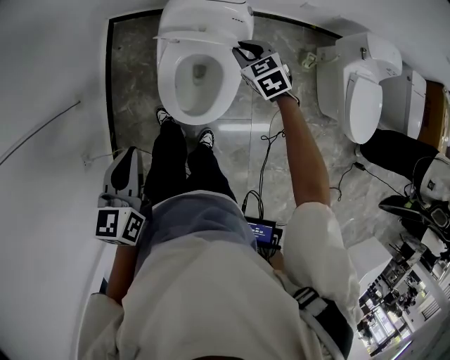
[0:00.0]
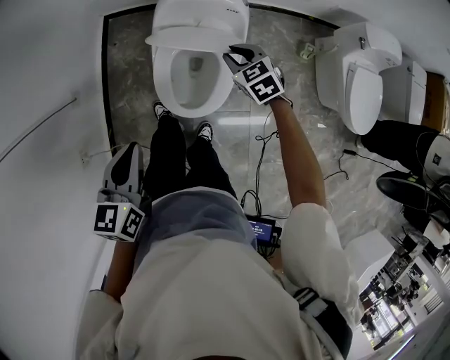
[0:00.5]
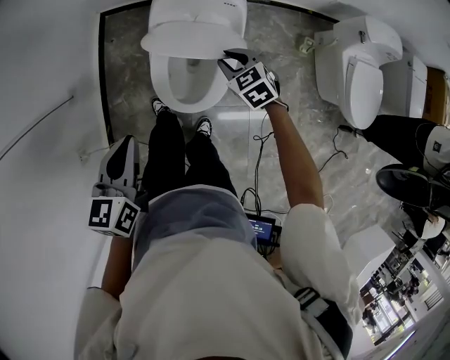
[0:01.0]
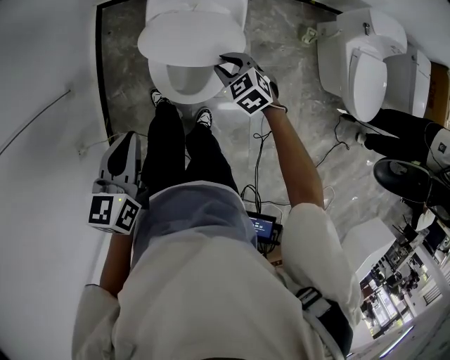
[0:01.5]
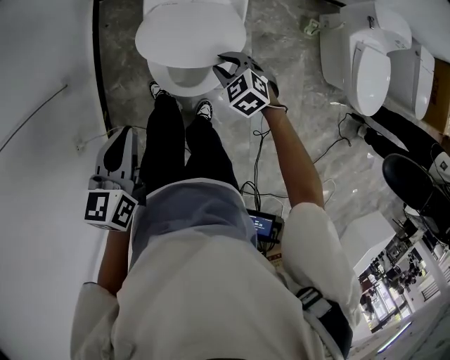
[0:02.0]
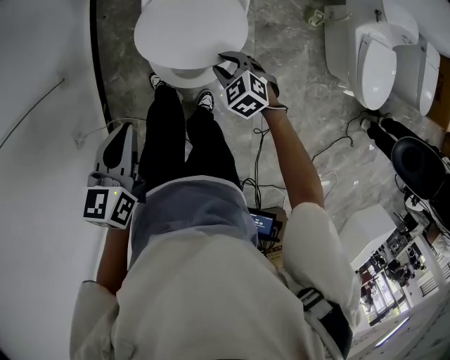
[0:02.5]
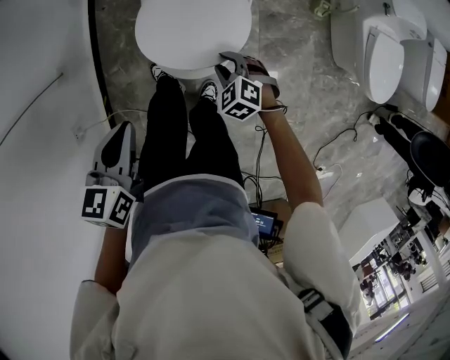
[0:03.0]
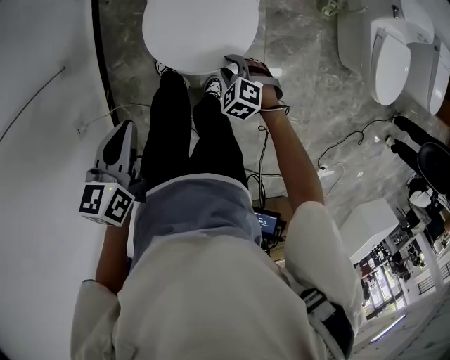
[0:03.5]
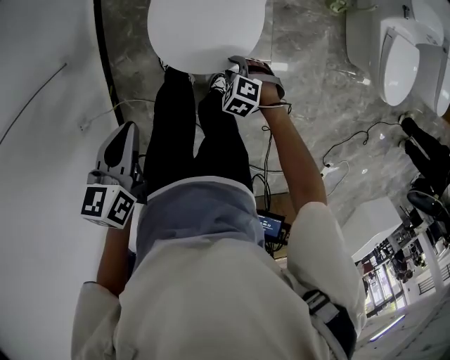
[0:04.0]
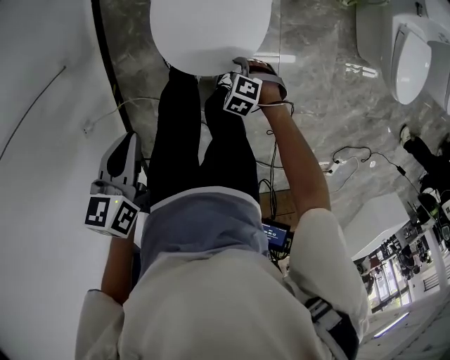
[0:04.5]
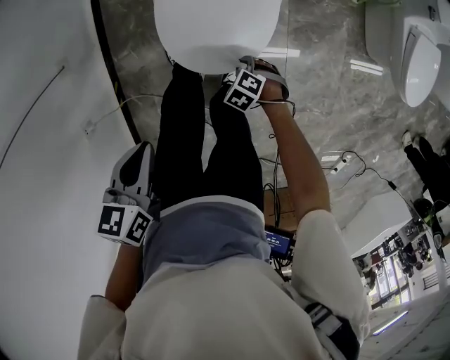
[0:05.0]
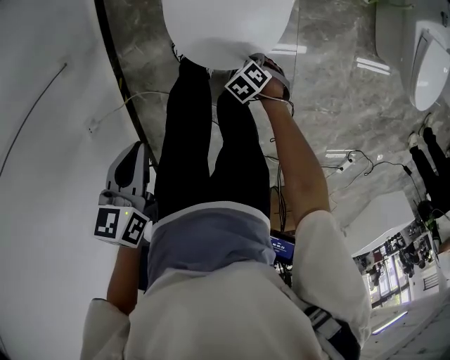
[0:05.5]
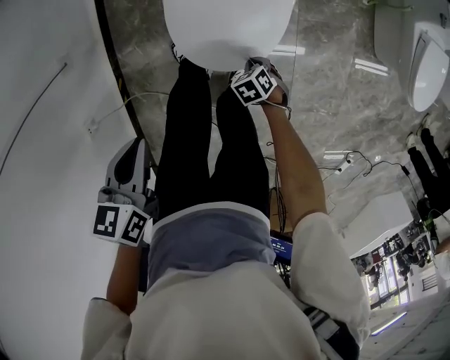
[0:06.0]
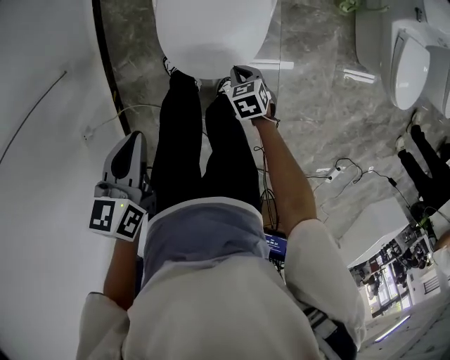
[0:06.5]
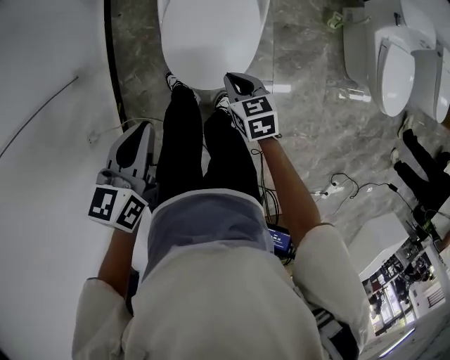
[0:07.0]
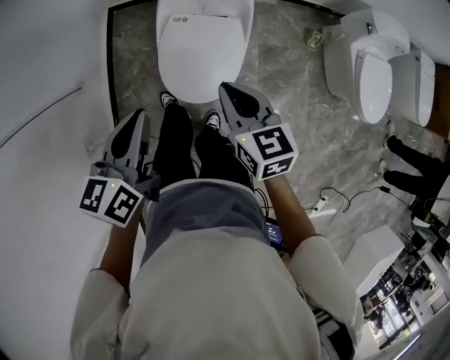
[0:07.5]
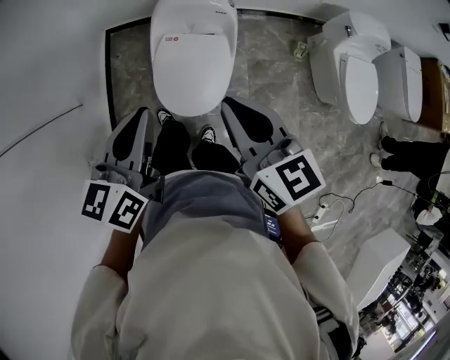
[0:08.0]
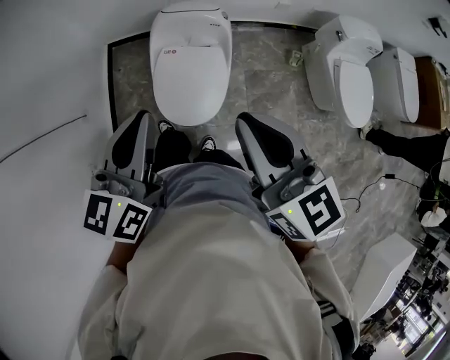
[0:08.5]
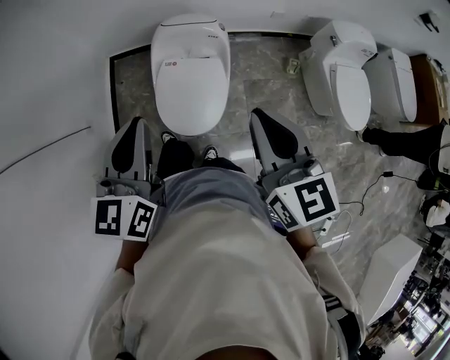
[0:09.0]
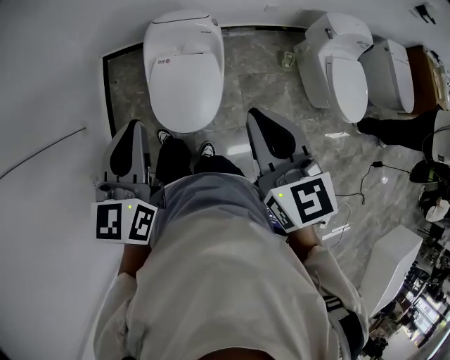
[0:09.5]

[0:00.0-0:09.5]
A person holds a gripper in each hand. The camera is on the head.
0:00.0 to 0:02.0: The right gripper is displaced backward and downward by roughly 15 cm.
0:02.0 to 0:04.0: The right gripper heads downward and backward, covering about 15 cm, and swivels approximately 20 degrees. Meanwhile the left gripper goes approximately 5 cm downward.
0:04.0 to 0:05.5: The right gripper travels downward by about 15 cm, and turns by approximately 30 degrees. Meanwhile the left gripper goes about 5 cm downward.
0:05.5 to 0:07.5: The left gripper moves upward, approximately 20 cm, and rotates roughly 30 degrees. Meanwhile the right gripper shifts approximately 50 cm upward, and angles its fingers upward, by some 60 degrees.
0:07.5 to 0:09.5: The left gripper shifts about 15 cm upward, and turns by approximately 20 degrees. Meanwhile the right gripper heads upward and to the right, covering some 25 cm.

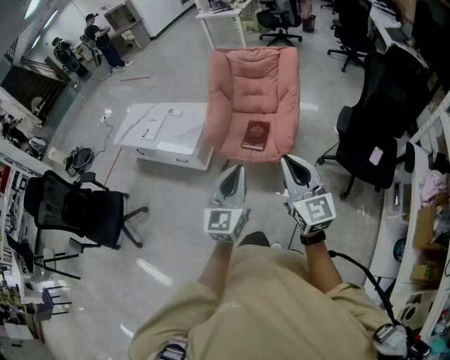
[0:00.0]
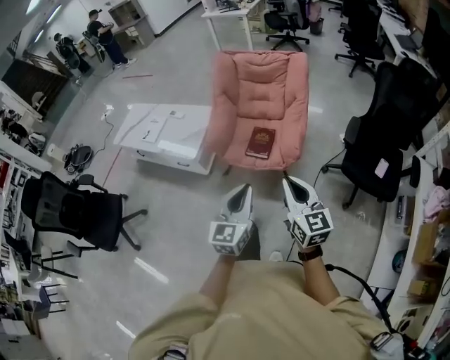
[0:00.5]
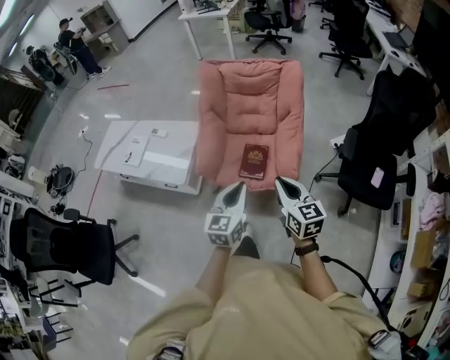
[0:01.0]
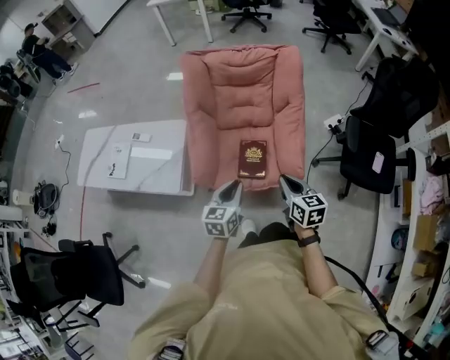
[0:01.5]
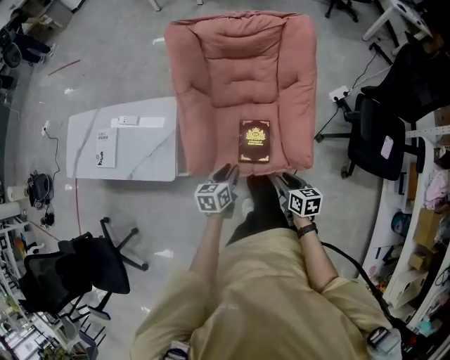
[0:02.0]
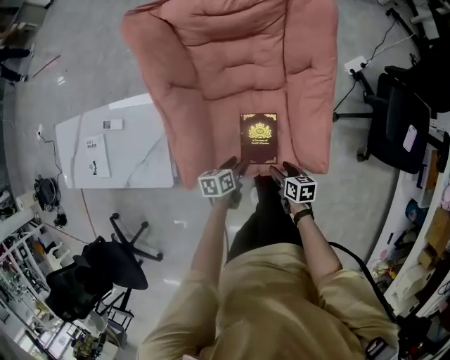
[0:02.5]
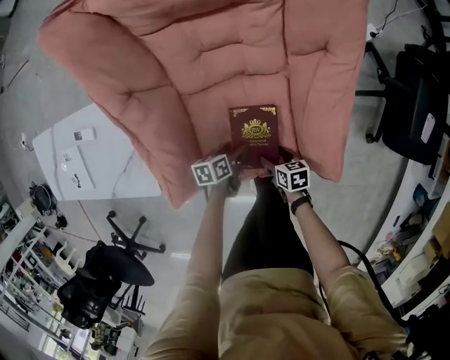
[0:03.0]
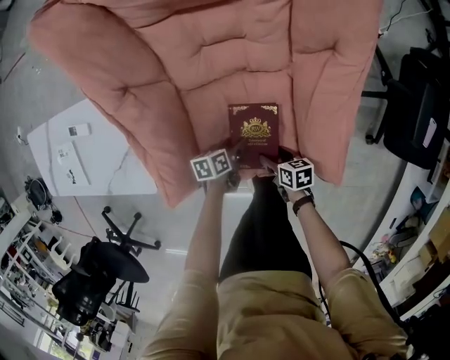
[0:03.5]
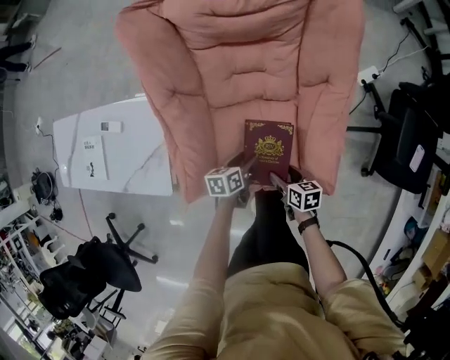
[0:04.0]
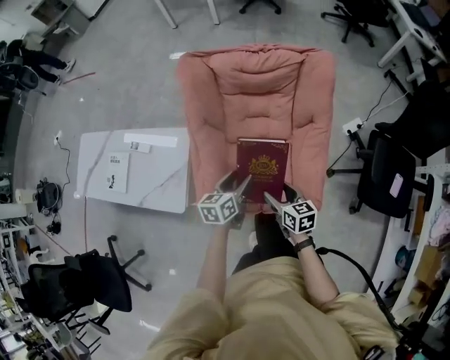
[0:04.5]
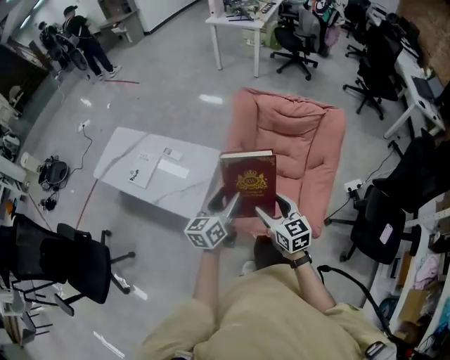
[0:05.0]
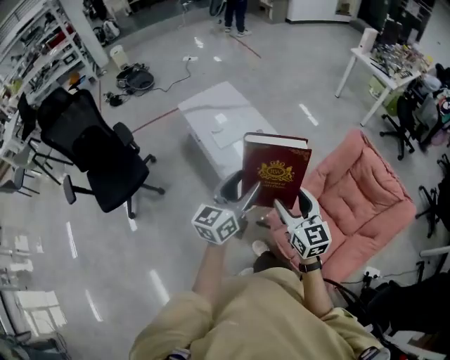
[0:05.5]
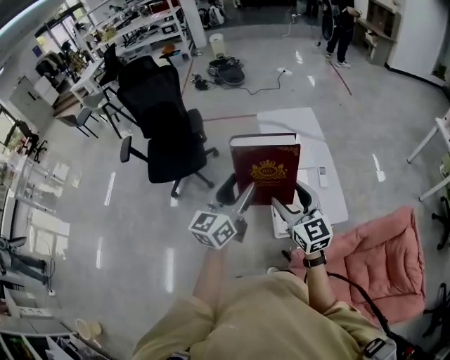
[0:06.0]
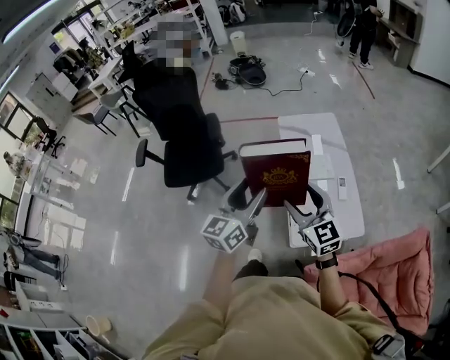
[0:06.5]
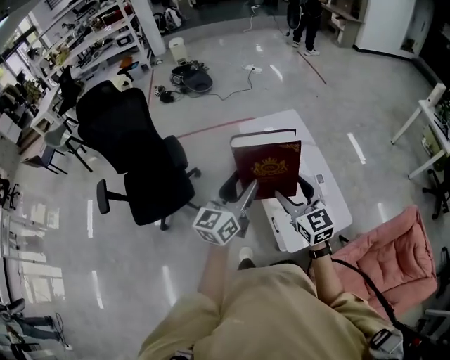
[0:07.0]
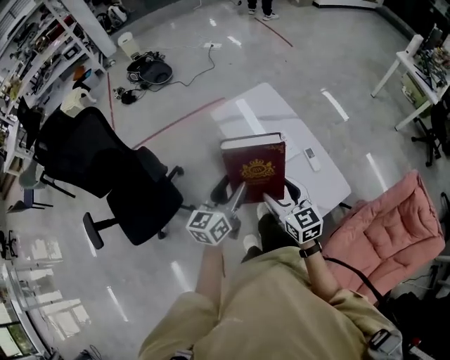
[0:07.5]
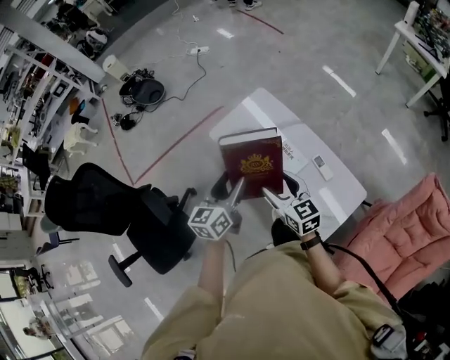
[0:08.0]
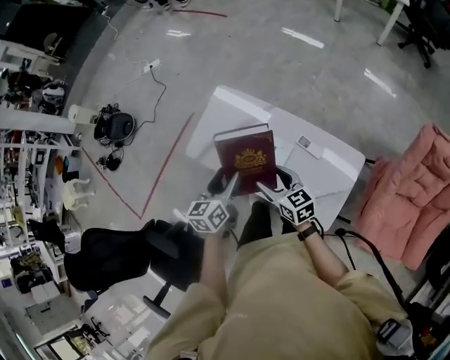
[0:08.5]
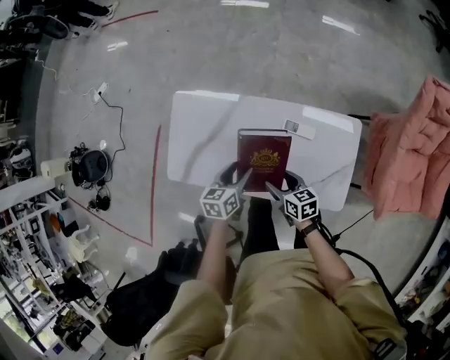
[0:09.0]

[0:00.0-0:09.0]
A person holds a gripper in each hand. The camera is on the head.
0:00.0 to 0:02.0: The pair of grippers is taken forward, about 50 cm. Both grippers travel together downward, about 40 cm. The right gripper angles its fingers downward, by roughly 50 degrees, and opens; the left gripper tips its fingers downward by roughly 40 degrees.
0:02.0 to 0:04.5: The right gripper travels forward and to the left by about 15 cm, reaches roughly 35 cm downward, then returns, and opens up; the left gripper moves forward, some 15 cm, reaches some 35 cm downward, then returns, and opens.
0:04.5 to 0:07.0: Both grippers are carried some 80 cm. The right gripper changes its angle by approximately 80 degrees. Meanwhile the left gripper points its fingers roughly 30 degrees further upward.
0:07.0 to 0:09.0: The two grippers travel together, about 50 cm. The right gripper twists some 70 degrees clockwise, seen from behind. The left gripper tips its fingers downward by roughly 50 degrees.

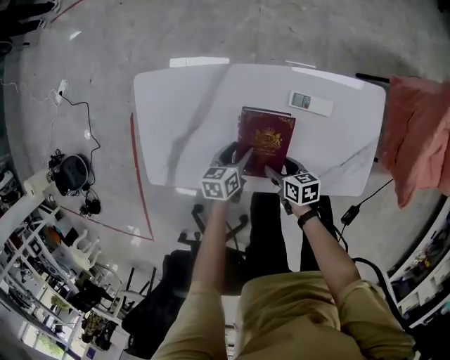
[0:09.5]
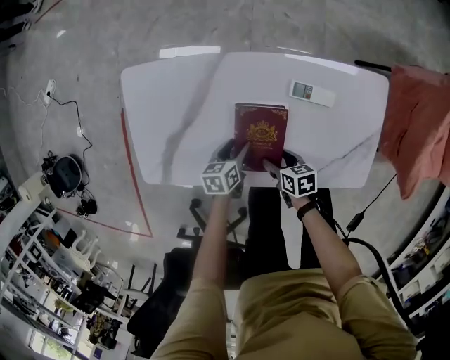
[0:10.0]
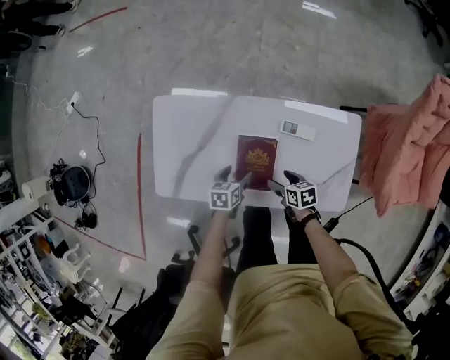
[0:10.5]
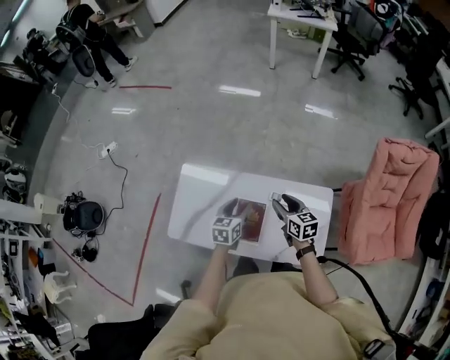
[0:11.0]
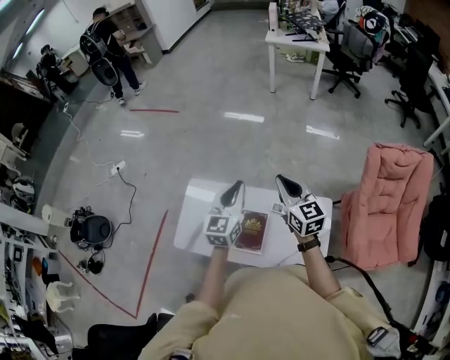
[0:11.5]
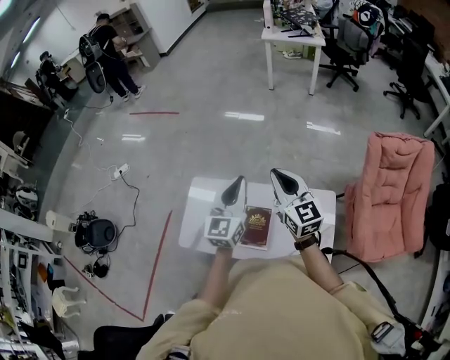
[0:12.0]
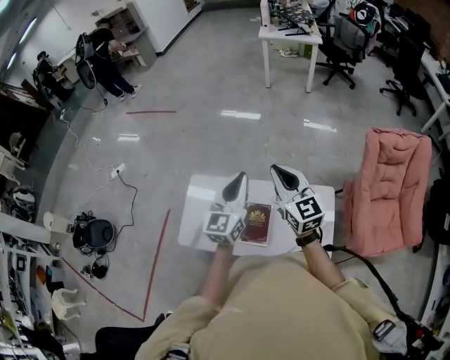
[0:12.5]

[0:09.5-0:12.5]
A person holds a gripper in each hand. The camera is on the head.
0:09.5 to 0:11.0: The two grippers go about 40 cm upward. The left gripper turns by some 30 degrees. The right gripper turns by some 40 degrees.
0:11.0 to 0:12.5: The grippers both shift upward by some 25 cm. The right gripper turns by roughly 40 degrees, and closes its fingers. The left gripper tilts its fingers roughly 30 degrees upward, and closes.

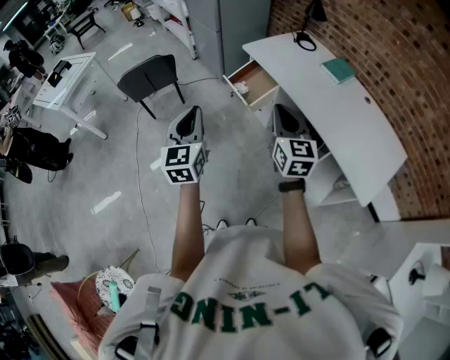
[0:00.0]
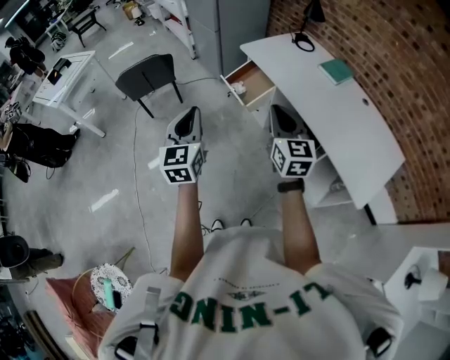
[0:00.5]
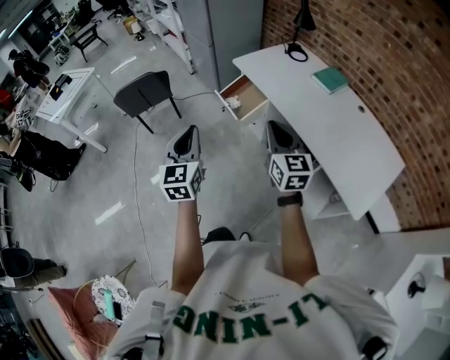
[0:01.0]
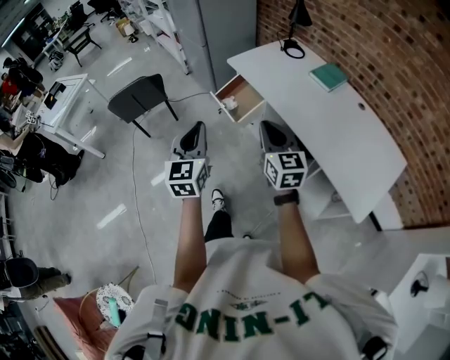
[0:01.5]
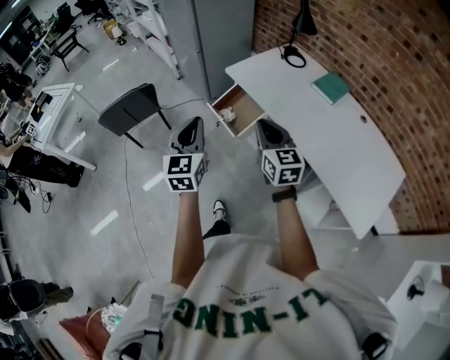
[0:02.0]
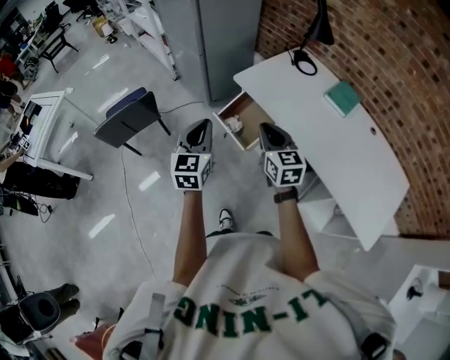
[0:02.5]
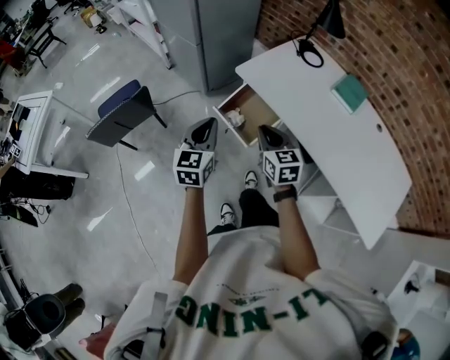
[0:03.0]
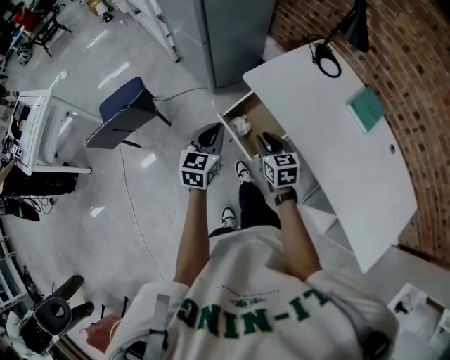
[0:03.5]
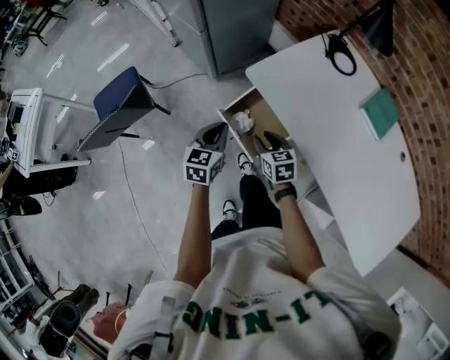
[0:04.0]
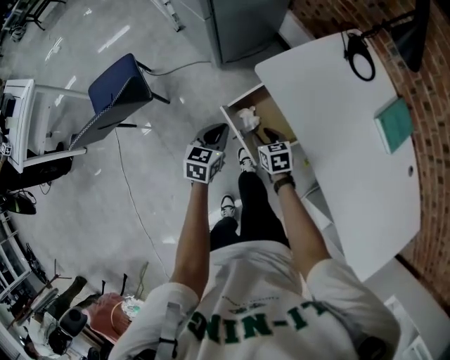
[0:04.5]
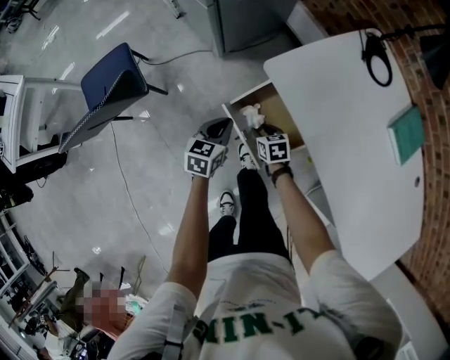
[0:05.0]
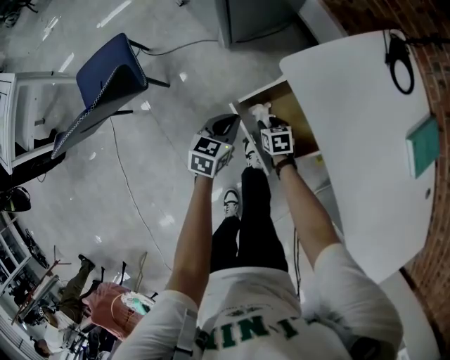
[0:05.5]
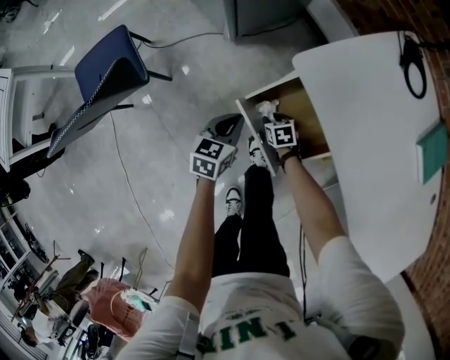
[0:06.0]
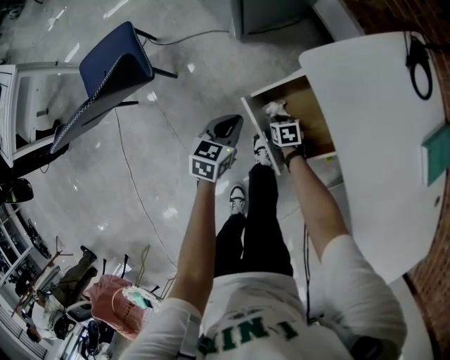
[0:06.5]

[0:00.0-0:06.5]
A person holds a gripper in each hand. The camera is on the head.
0:00.0 to 0:02.0: The two grippers go roughly 20 cm forward.
0:02.0 to 0:04.5: The left gripper is displaced forward and downward by about 50 cm, and rotates approximately 40 degrees. Meanwhile the right gripper moves downward and forward, about 50 cm, angles its fingers downward, by about 40 degrees, and opens.
0:04.5 to 0:06.5: The left gripper is displaced downward by roughly 15 cm; the right gripper goes about 25 cm downward, and closes its fingers.
